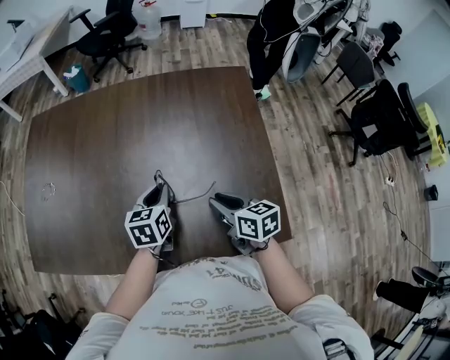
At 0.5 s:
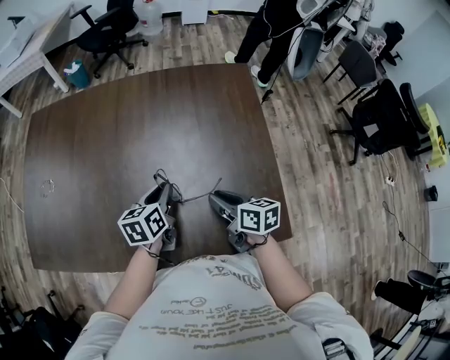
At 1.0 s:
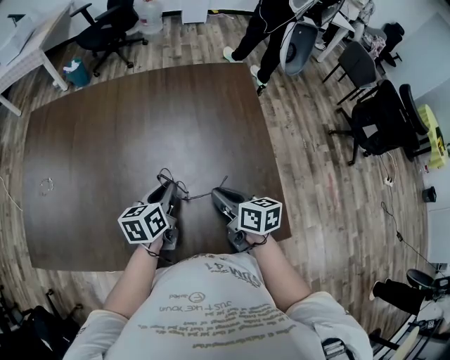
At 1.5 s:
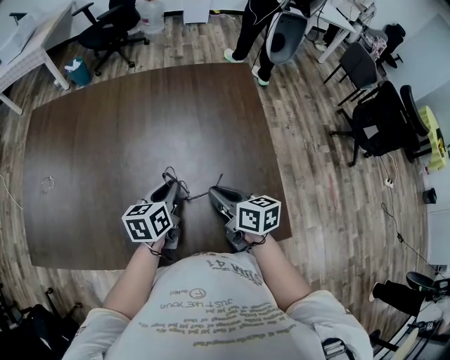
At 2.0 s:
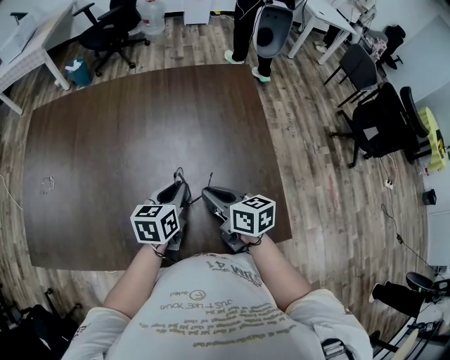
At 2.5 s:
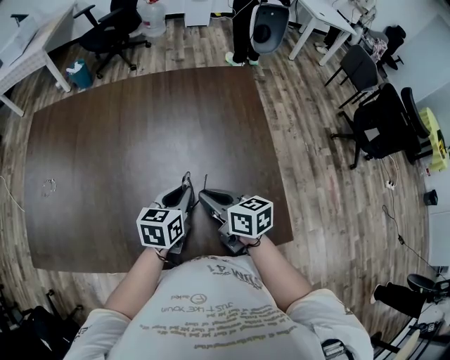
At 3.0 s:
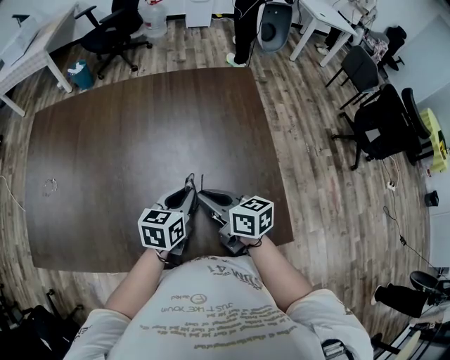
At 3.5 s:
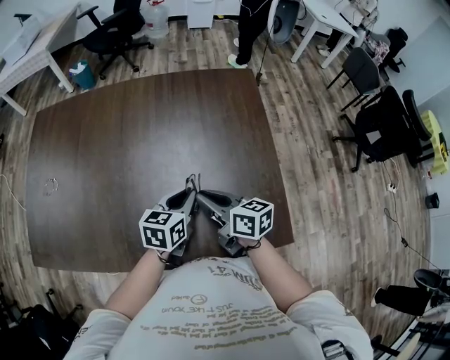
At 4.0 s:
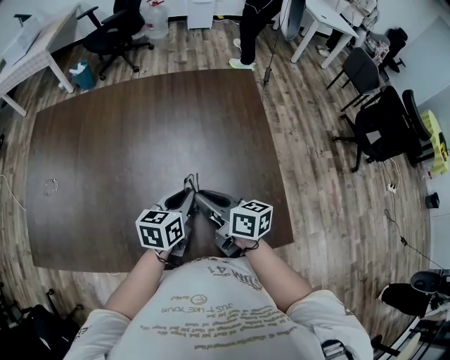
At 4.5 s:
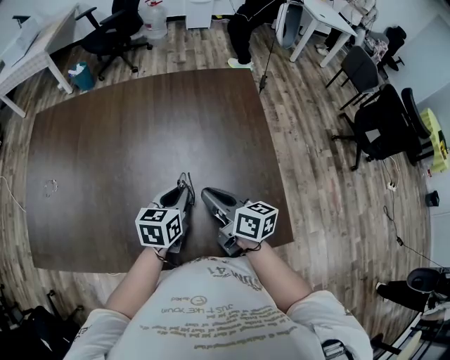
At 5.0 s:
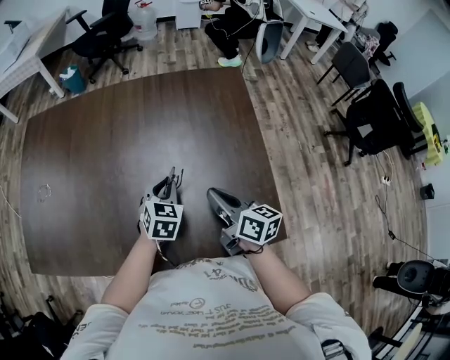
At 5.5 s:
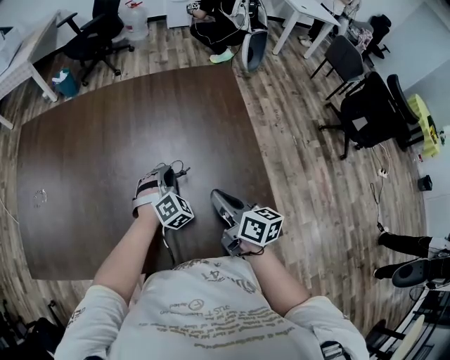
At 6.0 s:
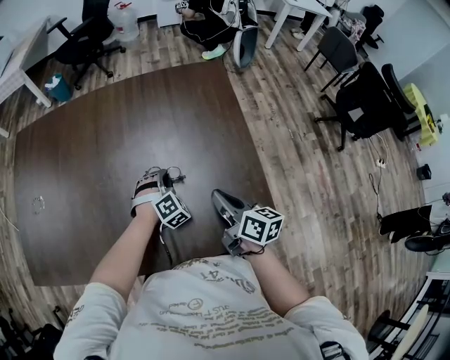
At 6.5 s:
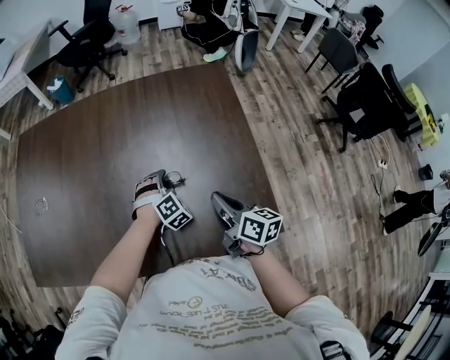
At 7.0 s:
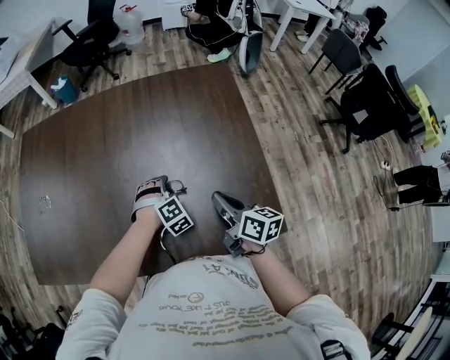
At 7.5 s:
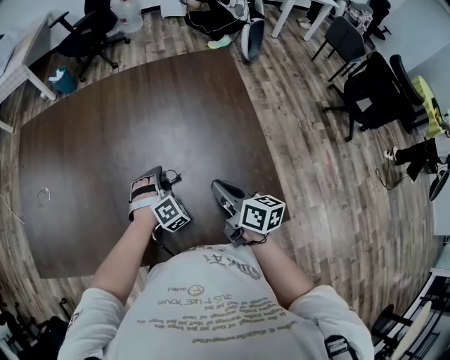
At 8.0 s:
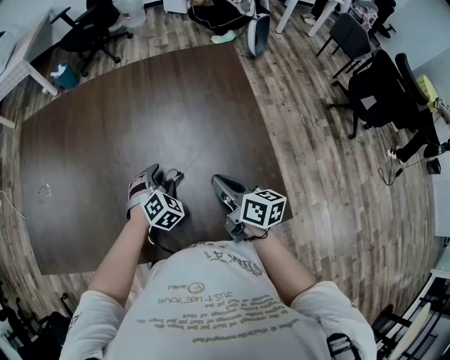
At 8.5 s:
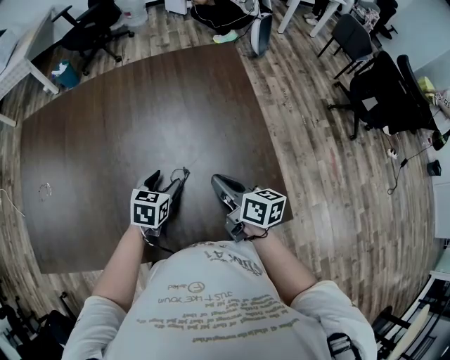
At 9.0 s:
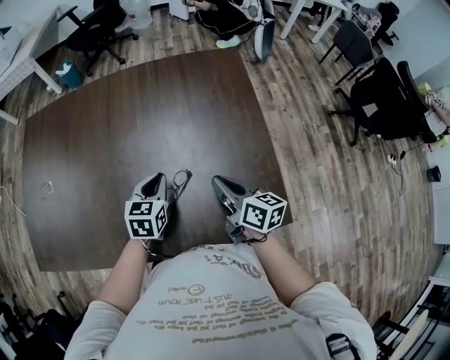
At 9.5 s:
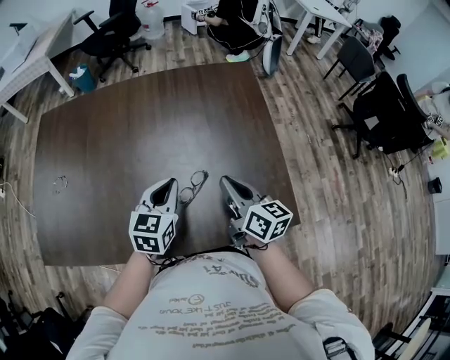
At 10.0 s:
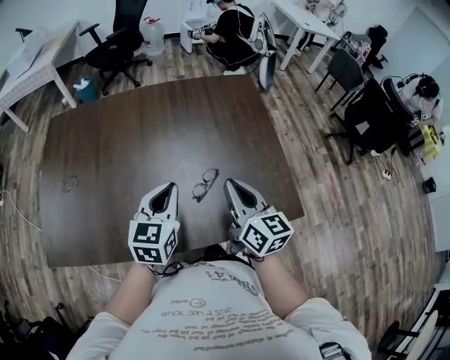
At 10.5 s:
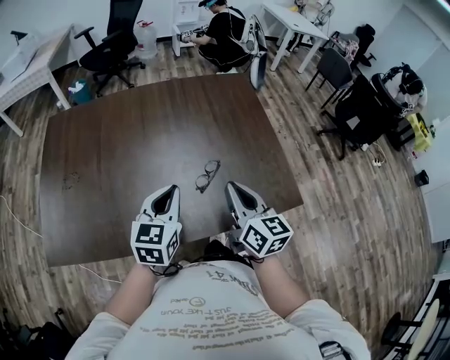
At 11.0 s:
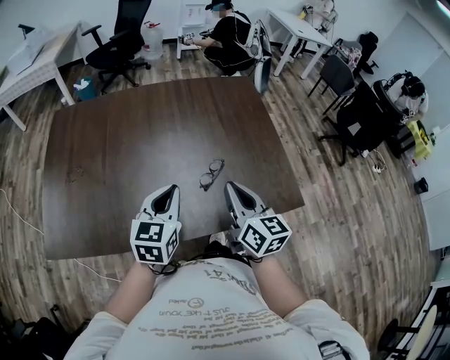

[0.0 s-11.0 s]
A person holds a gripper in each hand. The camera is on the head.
0.0 to 2.0 s: The left gripper moves about 5 cm.
2.0 to 3.5 s: There are only small adjustments of the grippers.
3.5 to 5.5 s: The left gripper moves downward and forward, roughly 10 cm, and twists roughly 70 degrees clockwise, seen from behind. Meanwhile the right gripper is displaced to the right by roughly 10 cm.
5.5 to 7.5 s: The left gripper moves some 5 cm, and opens its fingers.
7.5 to 9.0 s: The left gripper shifts about 10 cm upward, rolls counterclockwise, seen from behind, by about 70 degrees, and closes its fingers.
9.0 to 11.0 s: The right gripper moves backward, to the left and upward, some 20 cm, and turns by some 30 degrees; the left gripper shifts roughly 25 cm backward, upward and to the left.

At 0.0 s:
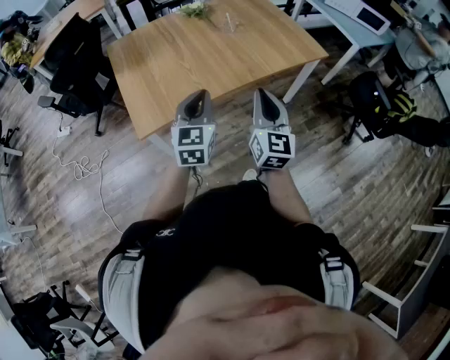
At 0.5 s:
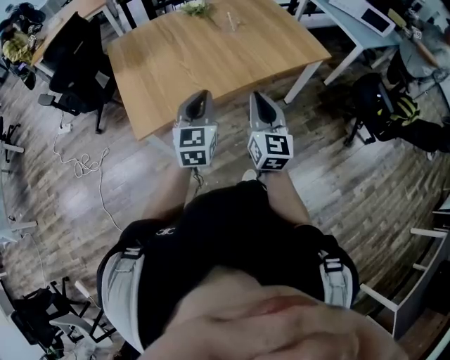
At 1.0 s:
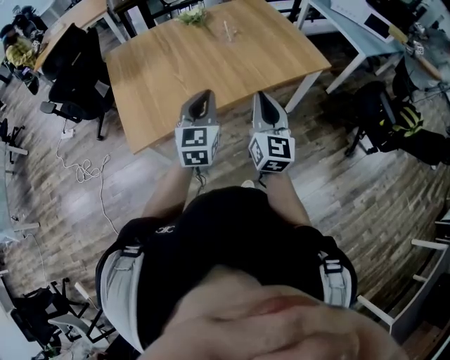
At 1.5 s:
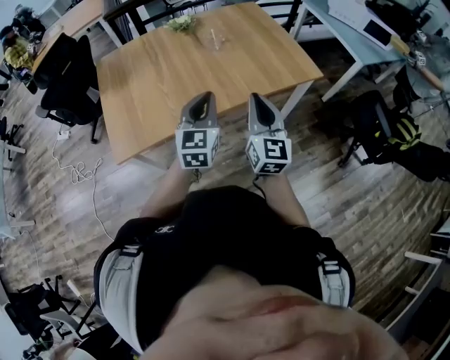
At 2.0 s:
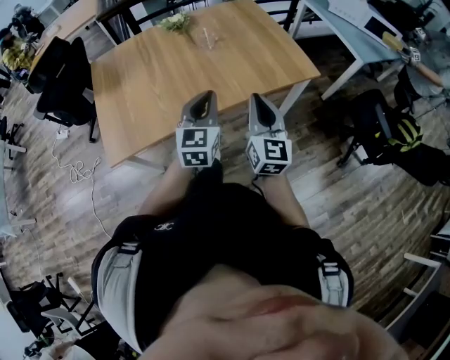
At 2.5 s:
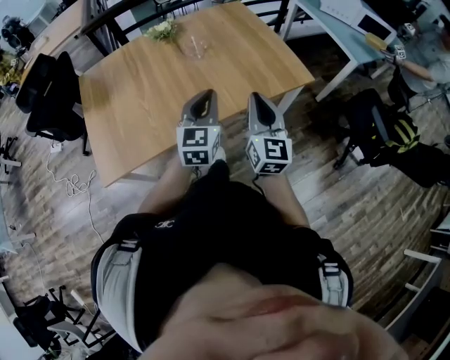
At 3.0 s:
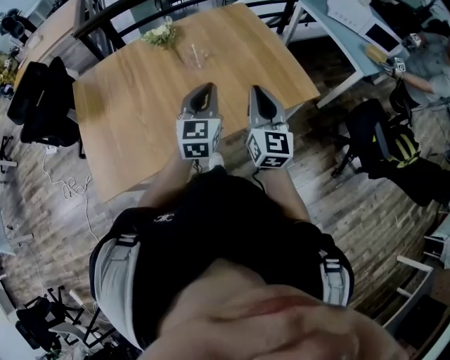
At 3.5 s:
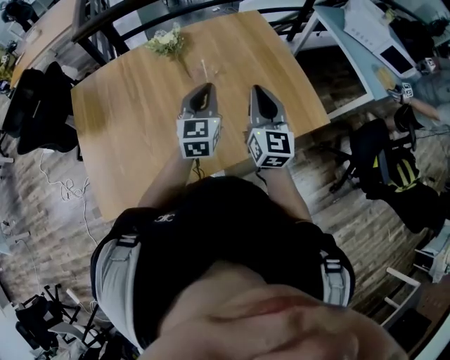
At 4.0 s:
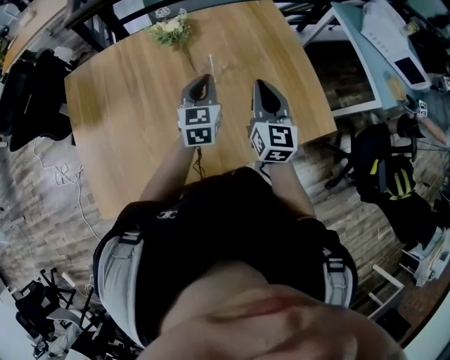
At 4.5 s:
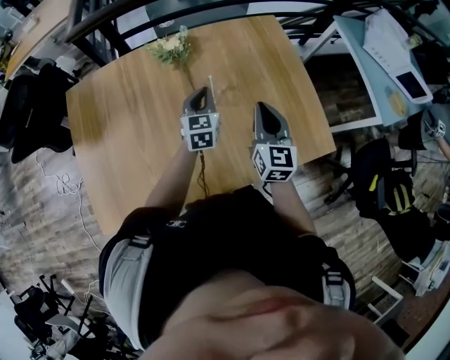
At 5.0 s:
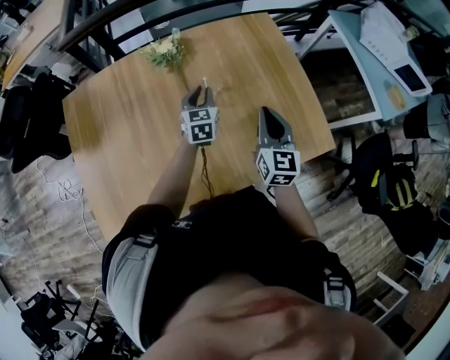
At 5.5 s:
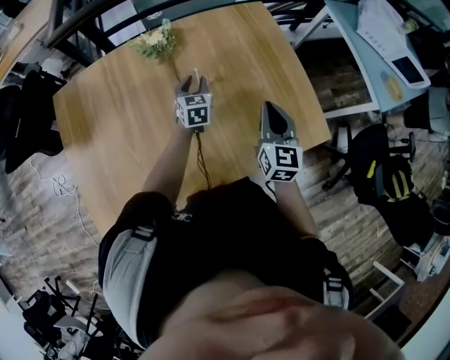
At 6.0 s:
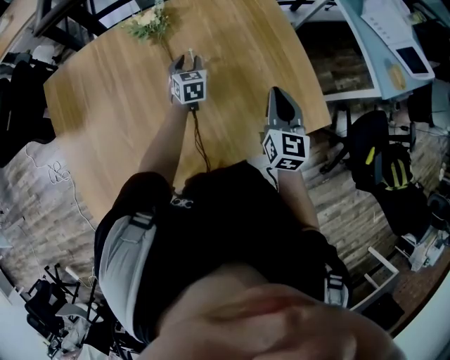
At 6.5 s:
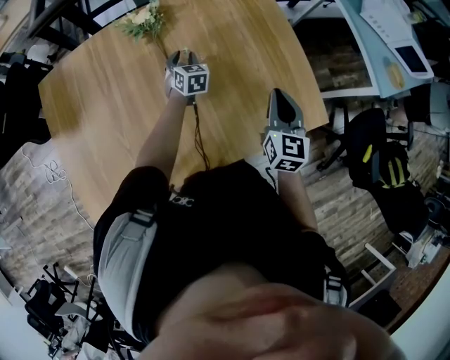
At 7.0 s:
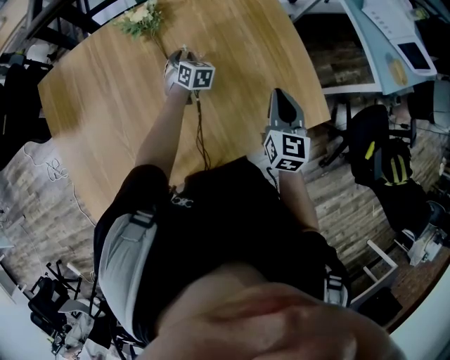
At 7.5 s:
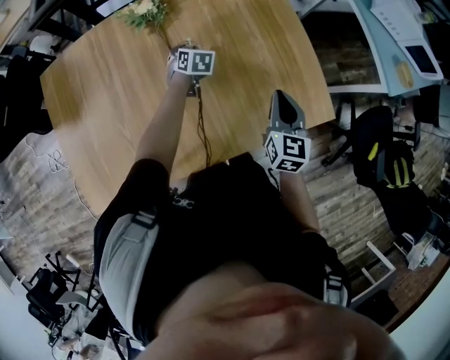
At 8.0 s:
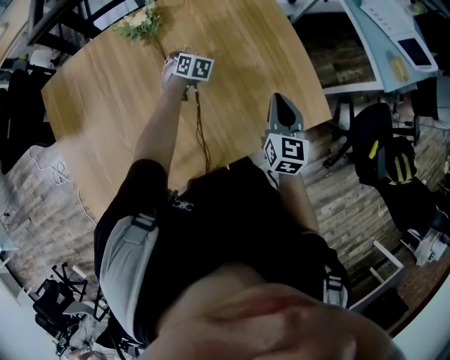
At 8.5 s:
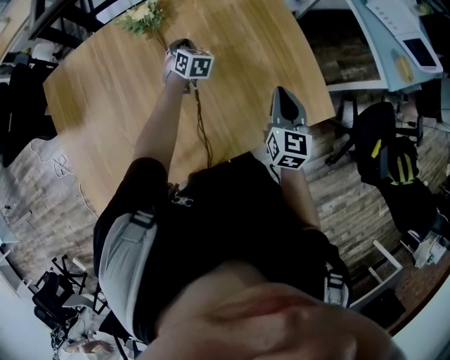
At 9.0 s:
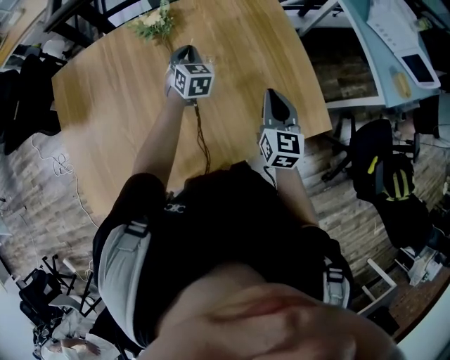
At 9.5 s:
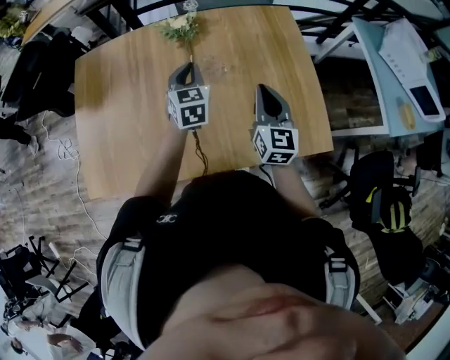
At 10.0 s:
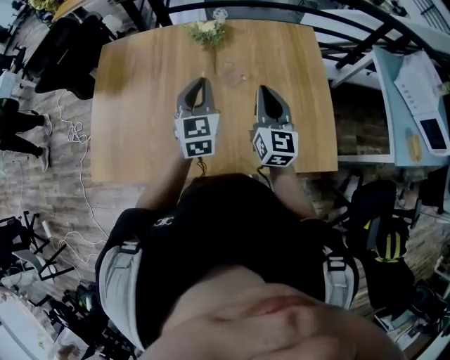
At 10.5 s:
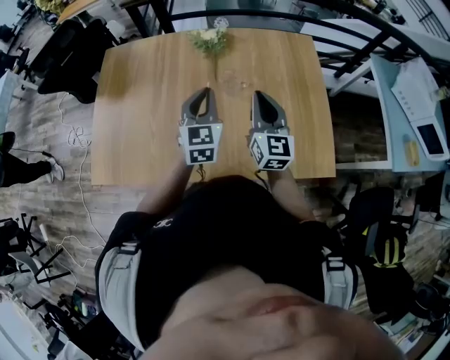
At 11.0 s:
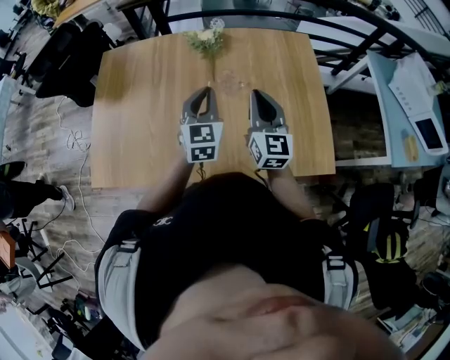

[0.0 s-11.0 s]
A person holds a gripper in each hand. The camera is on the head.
0.0 to 2.0 s: The grippers both shift to the right and forward by roughly 25 cm.
2.0 to 3.5 s: The two grippers go roughly 35 cm forward.
3.5 to 5.5 s: The left gripper travels forward and downward by about 30 cm, swivels roughly 20 degrees, and opens up; the right gripper is displaced forward and downward by roughly 15 cm.
5.5 to 7.5 s: The left gripper goes approximately 10 cm downward, and changes its angle by roughly 20 degrees; the right gripper moves downward, about 5 cm.
7.5 to 9.0 s: The left gripper moves upward, approximately 15 cm, turns by approximately 20 degrees, and closes up.
9.0 to 11.0 s: The right gripper heads to the left and upward, covering roughly 15 cm, and turns by about 30 degrees; the left gripper heads backward, upward and to the left, covering about 25 cm, and changes its angle by some 20 degrees.

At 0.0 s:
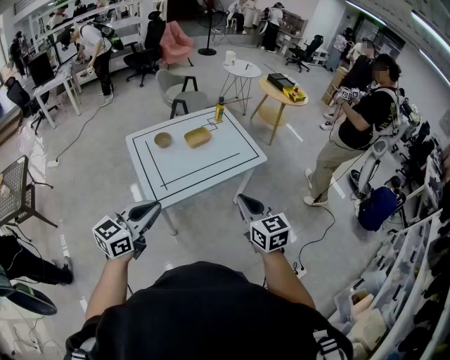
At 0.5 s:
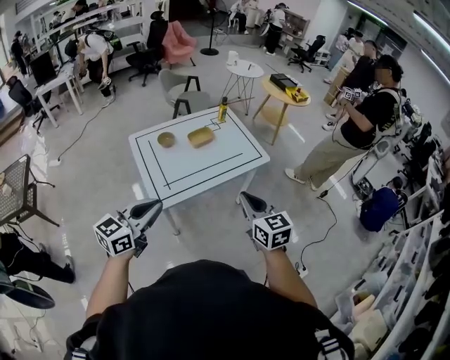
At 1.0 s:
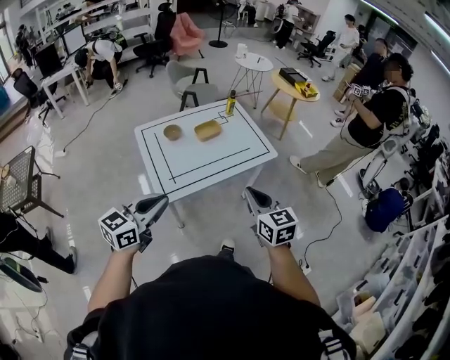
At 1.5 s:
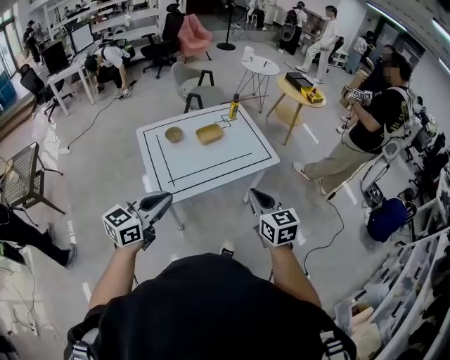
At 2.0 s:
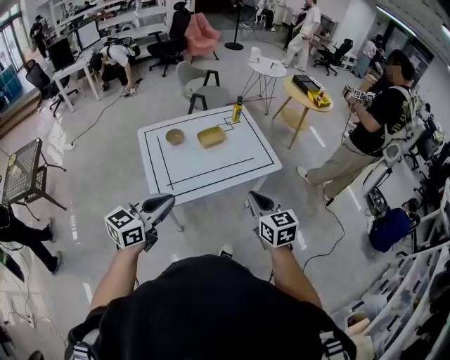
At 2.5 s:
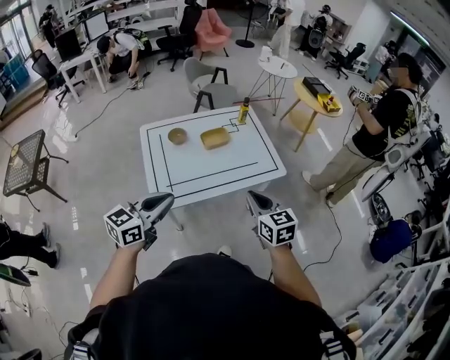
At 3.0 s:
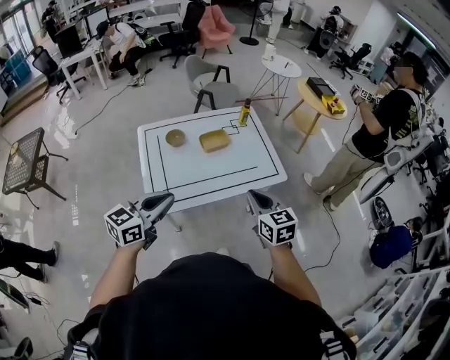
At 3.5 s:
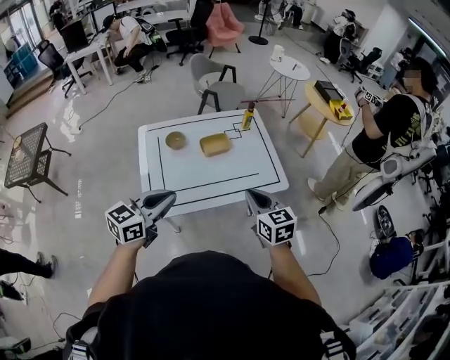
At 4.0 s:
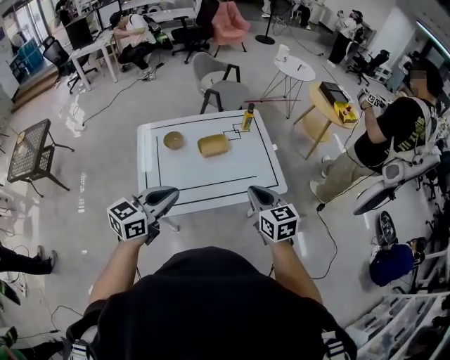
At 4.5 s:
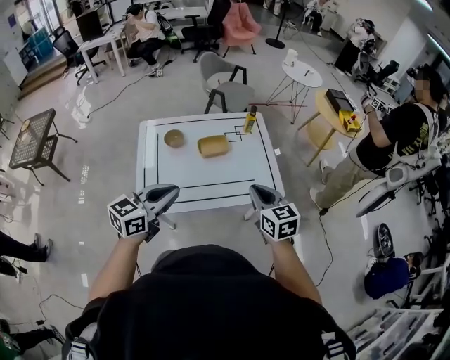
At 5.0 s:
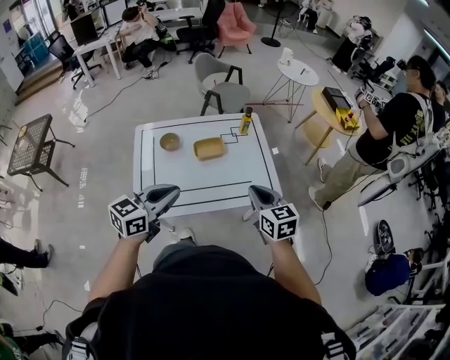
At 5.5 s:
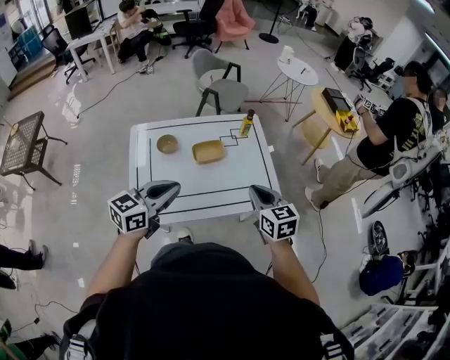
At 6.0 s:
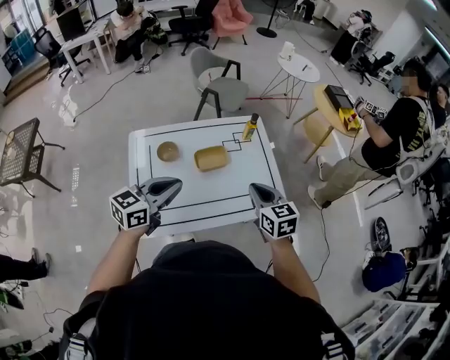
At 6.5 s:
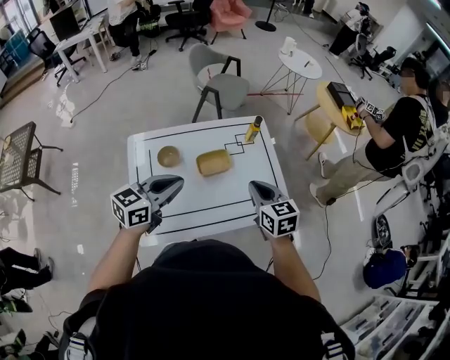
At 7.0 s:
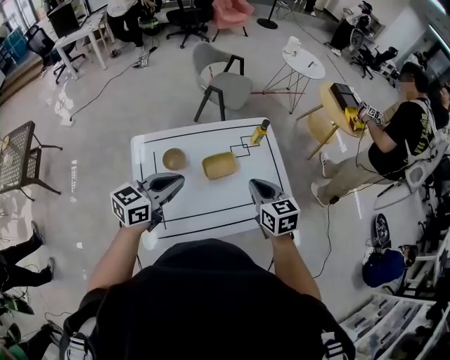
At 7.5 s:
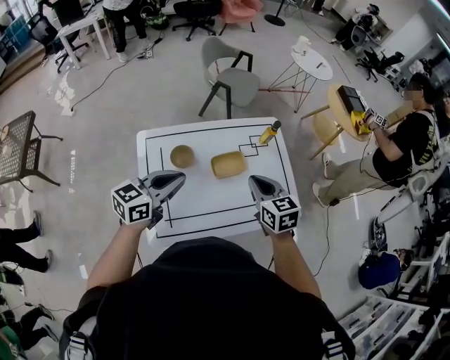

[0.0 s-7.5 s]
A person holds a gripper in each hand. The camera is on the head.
0.0 to 2.0 s: Both grippers move forward, roughly 10 cm.
2.0 to 4.0 s: Both grippers move forward, approximately 20 cm.
4.0 to 5.5 s: The two grippers go roughly 10 cm forward.
5.5 to 7.5 s: The left gripper travels forward and to the left by some 20 cm. Meanwhile the right gripper goes approximately 20 cm to the left and forward.